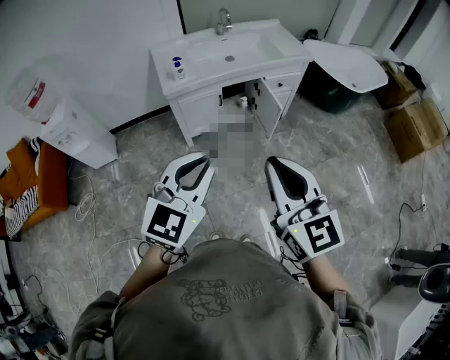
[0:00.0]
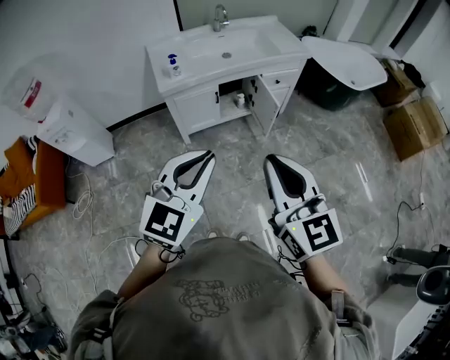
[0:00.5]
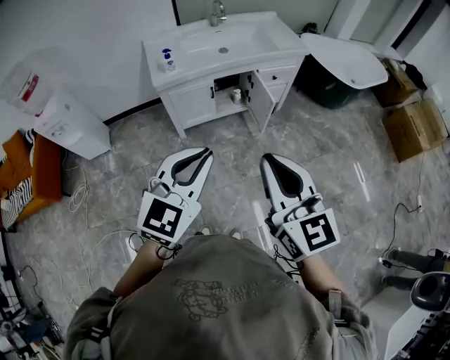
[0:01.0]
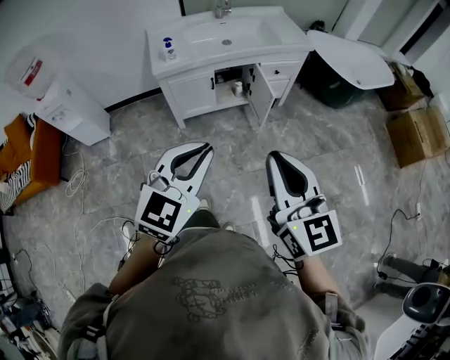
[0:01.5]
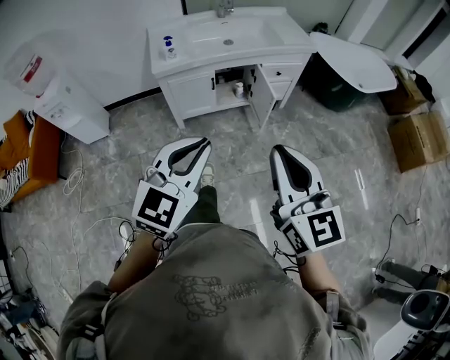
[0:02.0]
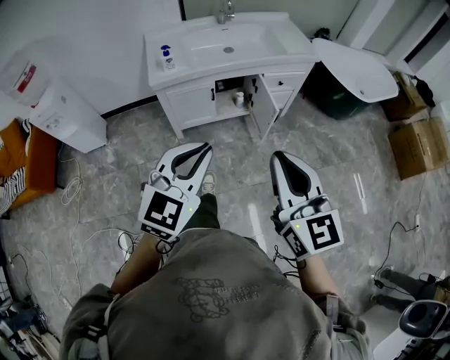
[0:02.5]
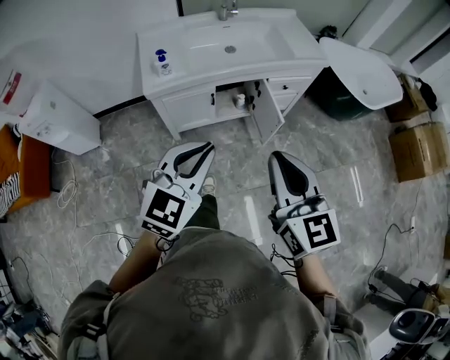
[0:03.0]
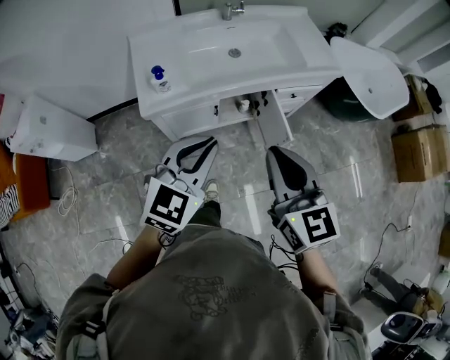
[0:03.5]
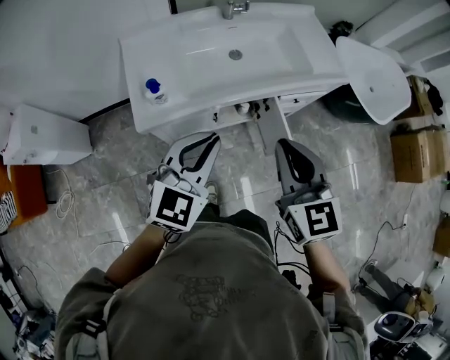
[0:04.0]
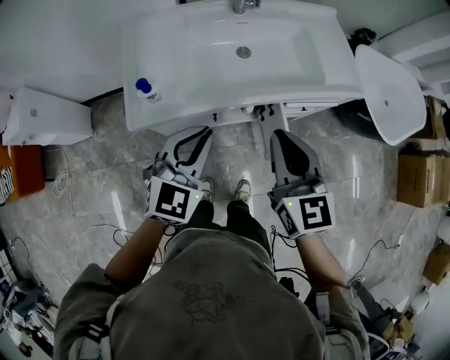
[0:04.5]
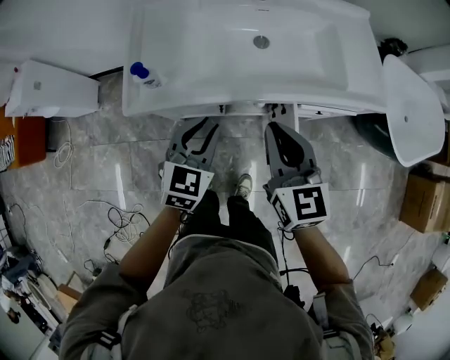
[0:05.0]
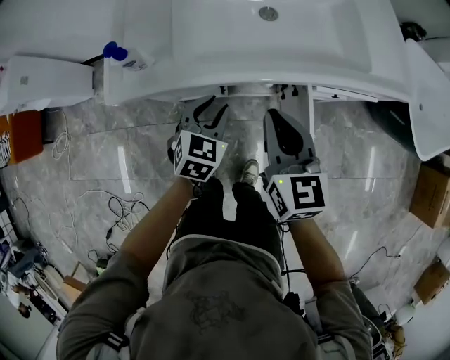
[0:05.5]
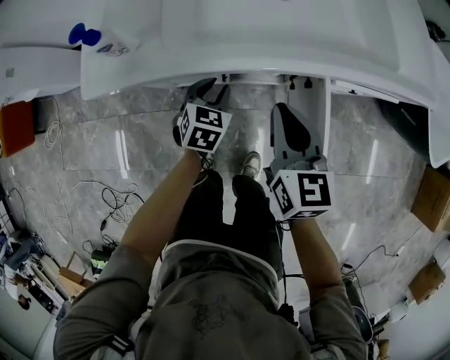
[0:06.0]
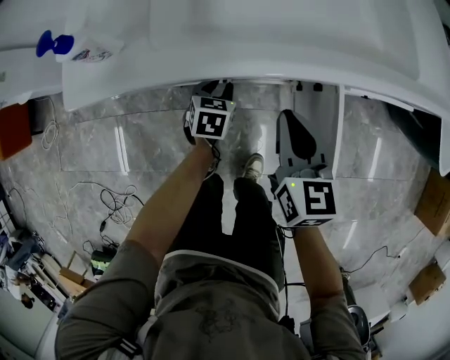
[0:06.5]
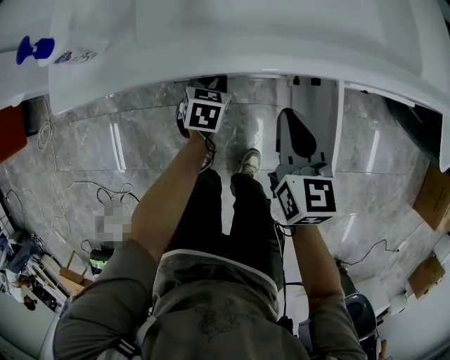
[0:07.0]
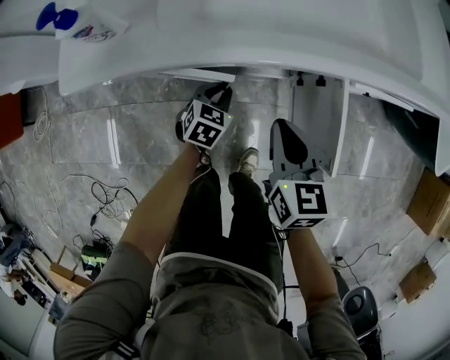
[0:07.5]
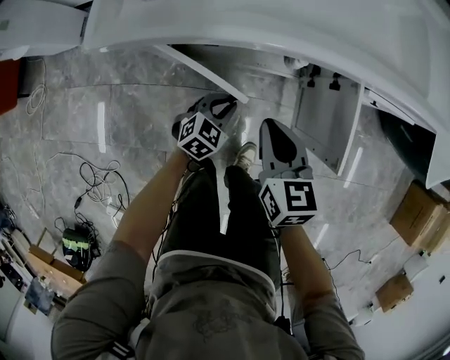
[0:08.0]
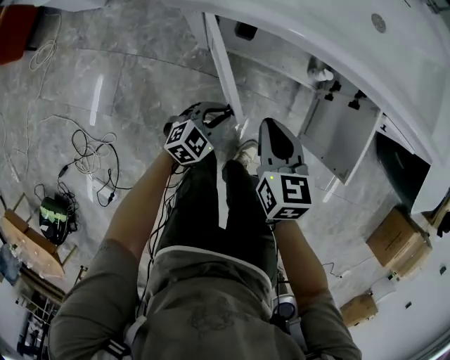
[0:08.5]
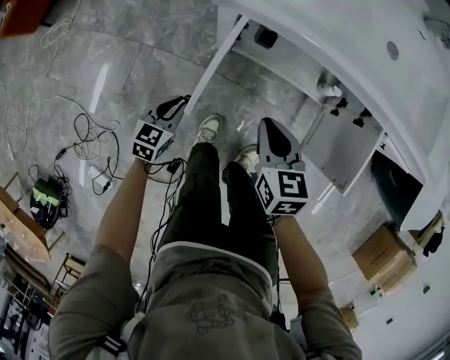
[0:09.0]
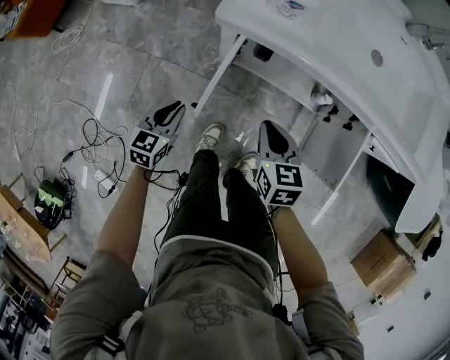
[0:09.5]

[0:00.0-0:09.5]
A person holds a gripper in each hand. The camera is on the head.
0:00.0 to 0:02.0: Both grippers move to the right, roughly 10 cm.
0:02.0 to 0:04.0: Both grippers are carried forward, approximately 50 cm.
0:04.0 to 0:05.5: Both grippers move downward and forward, some 30 cm. The left gripper changes its angle by approximately 40 degrees, and opens.
0:05.5 to 0:07.5: The grippers both shift downward by approximately 20 cm.
0:07.5 to 0:09.5: The left gripper heads to the left and backward, covering approximately 35 cm, and turns by roughly 30 degrees, while the right gripper goes about 20 cm to the left, and changes its angle by approximately 20 degrees.

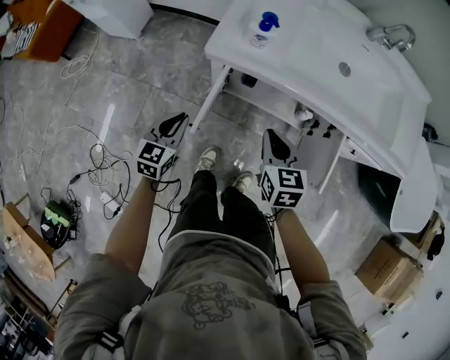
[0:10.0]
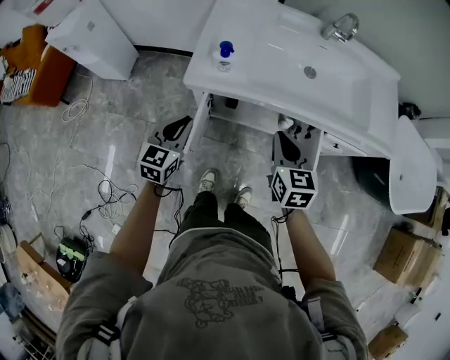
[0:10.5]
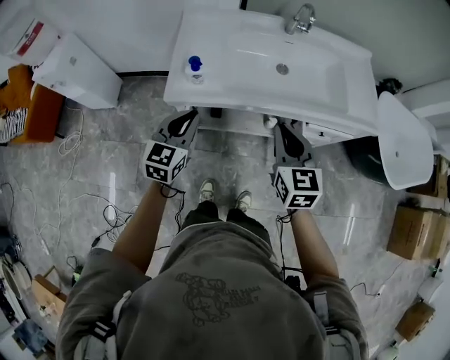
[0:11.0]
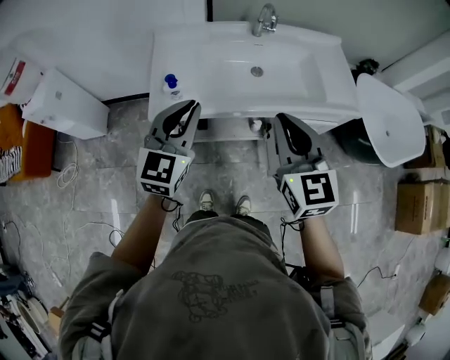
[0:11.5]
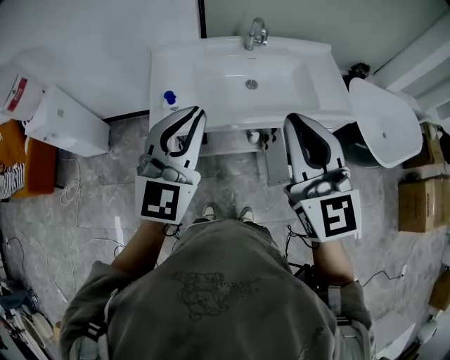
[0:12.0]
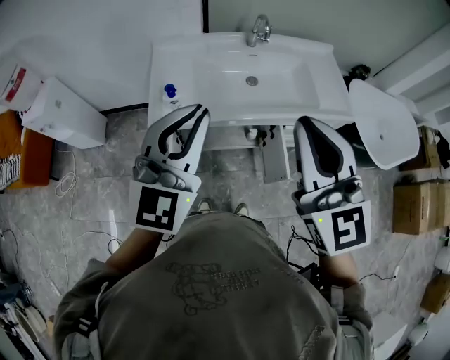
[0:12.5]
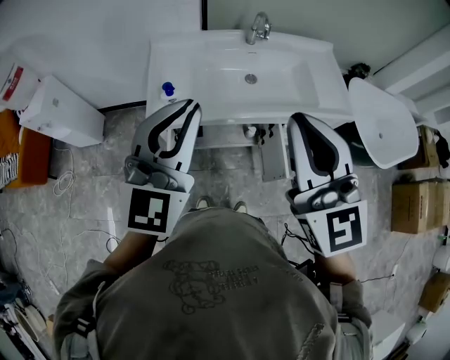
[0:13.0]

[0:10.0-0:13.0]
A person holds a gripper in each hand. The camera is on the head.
0:10.0 to 0:11.5: Both grippers move upward and to the right, some 40 cm. The left gripper swivels about 30 degrees; the right gripper swivels some 30 degrees.
0:11.5 to 0:13.0: The left gripper heads upward and backward, covering approximately 15 cm, while the right gripper shifts about 15 cm upward.

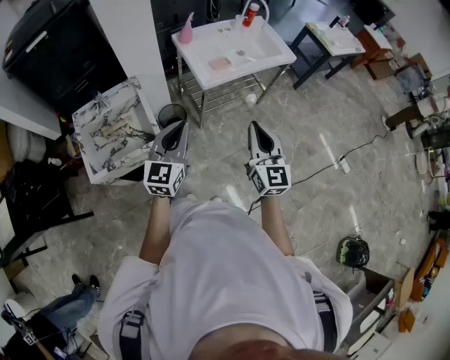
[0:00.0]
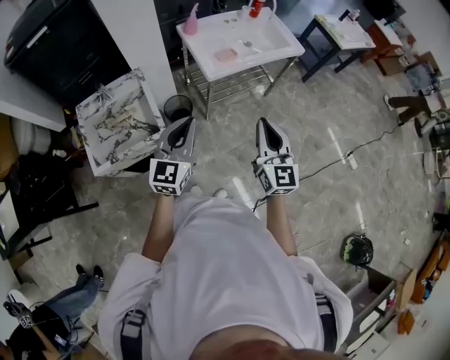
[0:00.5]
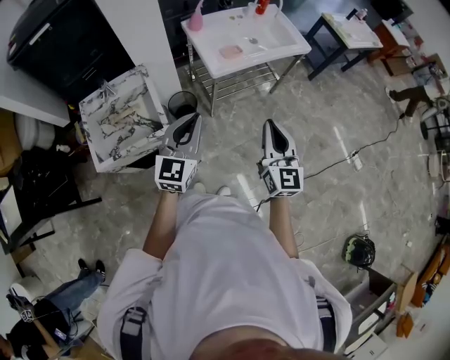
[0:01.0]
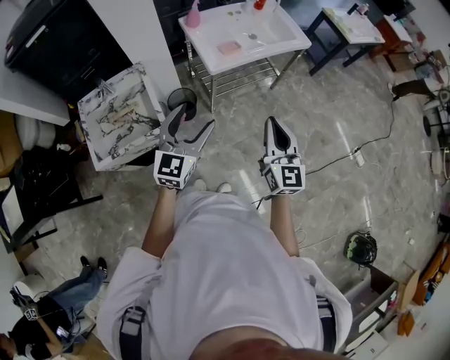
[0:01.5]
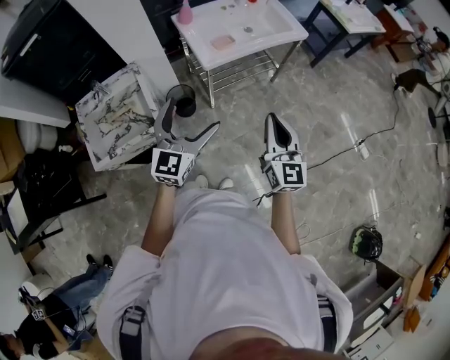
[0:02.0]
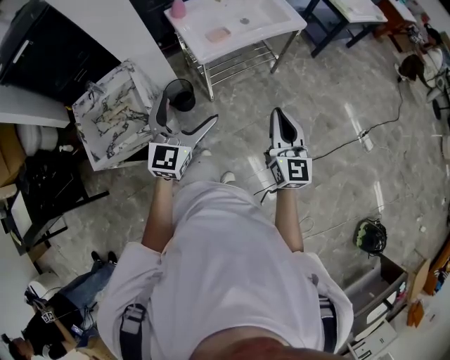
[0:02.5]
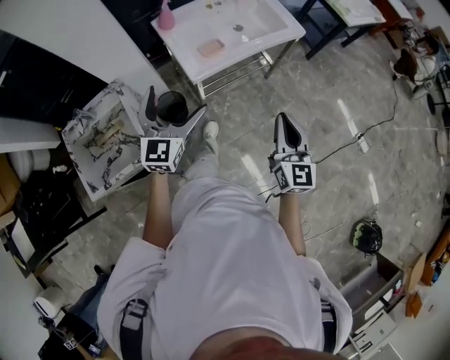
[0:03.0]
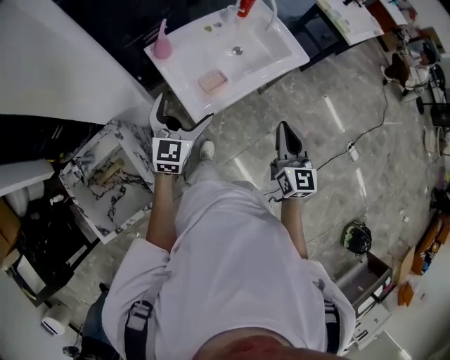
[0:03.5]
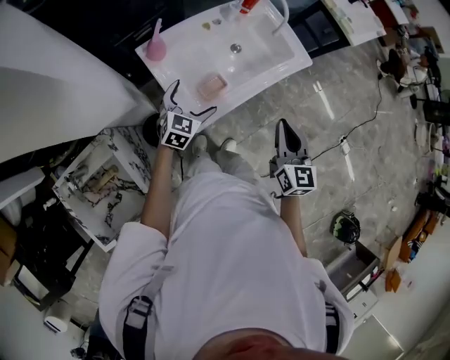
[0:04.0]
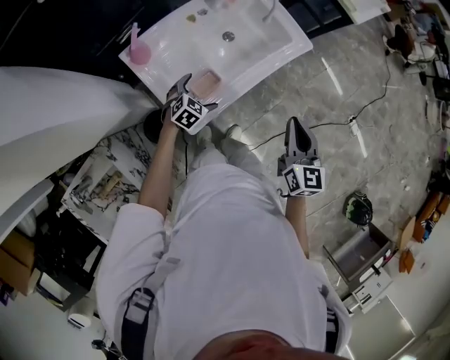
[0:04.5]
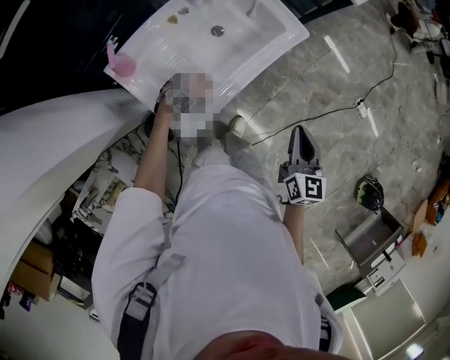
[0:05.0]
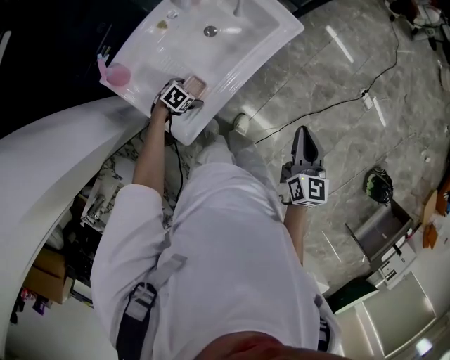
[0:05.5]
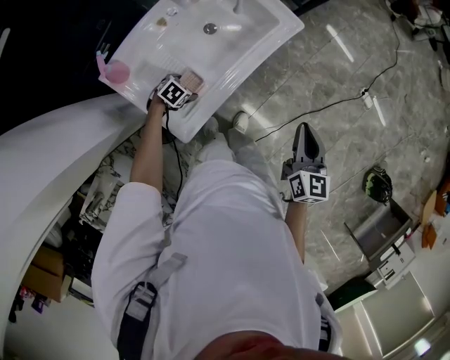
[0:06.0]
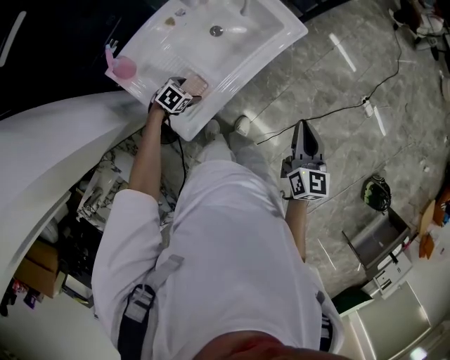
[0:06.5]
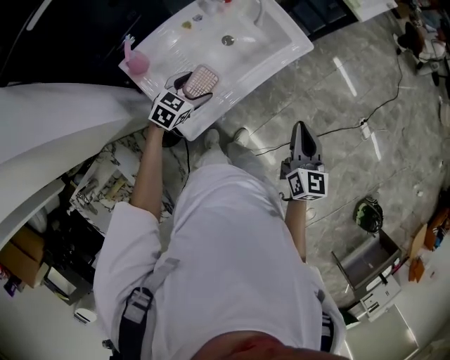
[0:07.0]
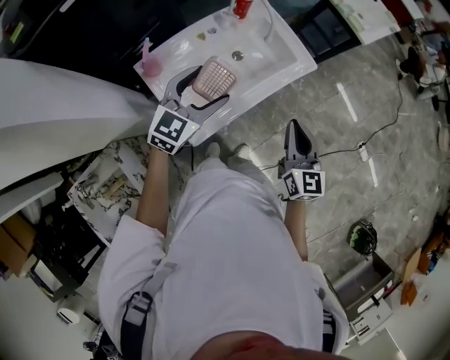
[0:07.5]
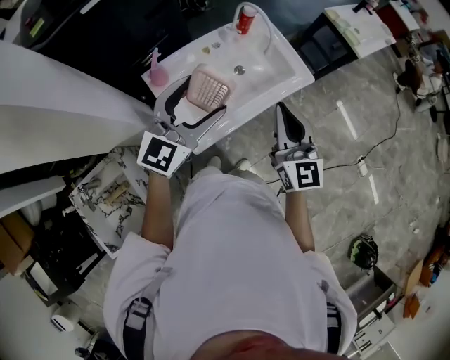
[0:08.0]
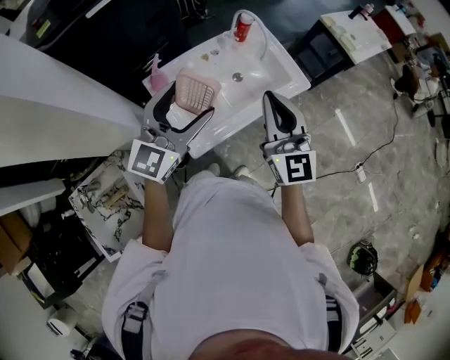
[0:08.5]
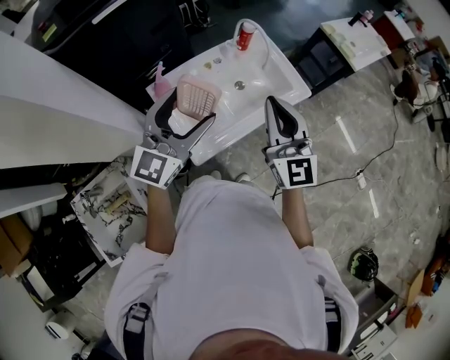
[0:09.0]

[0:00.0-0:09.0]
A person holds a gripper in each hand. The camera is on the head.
0:00.0 to 0:02.0: Both grippers move to the right, approximately 10 cm. The left gripper opens.
0:02.0 to 0:04.5: The two grippers travel together, forward, approximately 50 cm. The left gripper travels downward by some 35 cm, and tips its fingers downward by about 40 degrees. The right gripper rotates roughly 30 degrees.
0:04.5 to 0:07.0: The left gripper travels upward by approximately 10 cm.
0:07.0 to 0:09.0: The left gripper is displaced upward by roughly 30 cm, and angles its fingers upward, by some 40 degrees. The right gripper goes roughly 25 cm upward and to the left, and turns by about 40 degrees.

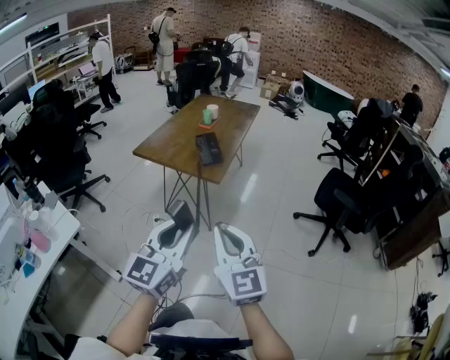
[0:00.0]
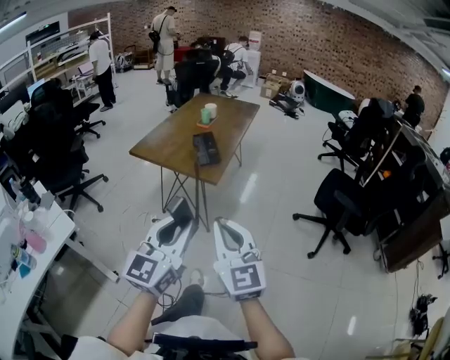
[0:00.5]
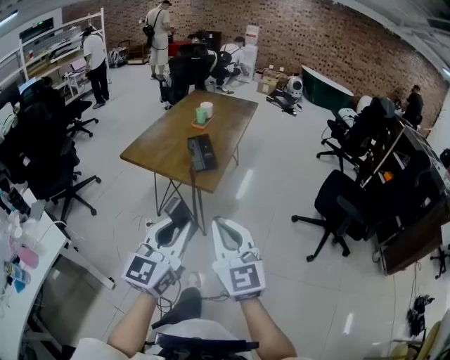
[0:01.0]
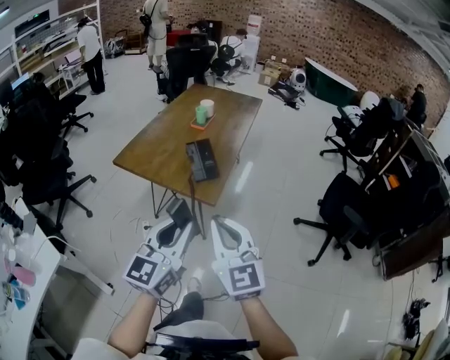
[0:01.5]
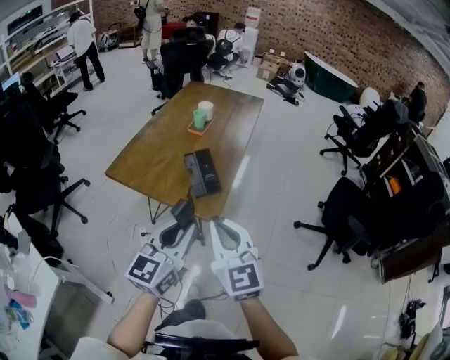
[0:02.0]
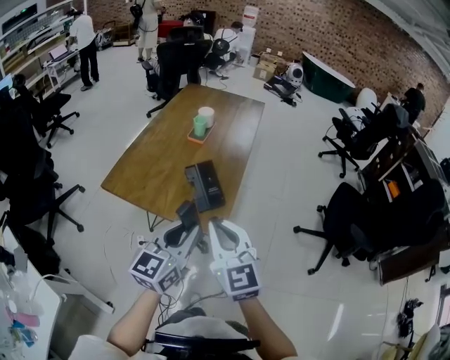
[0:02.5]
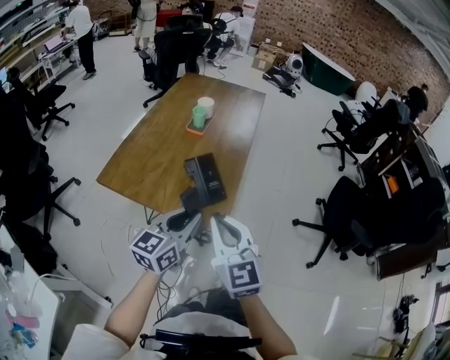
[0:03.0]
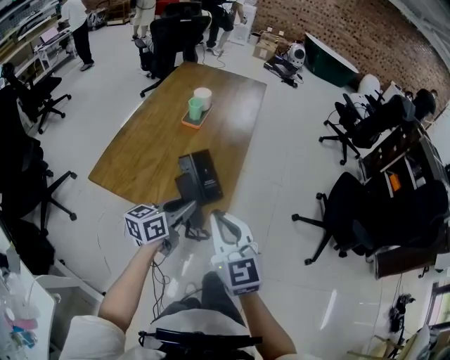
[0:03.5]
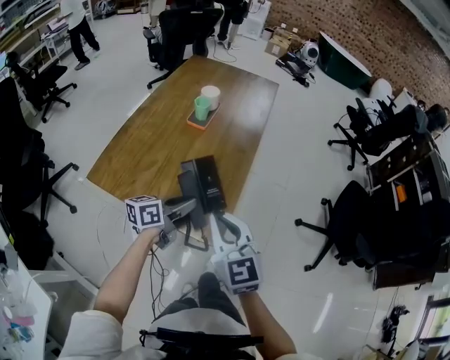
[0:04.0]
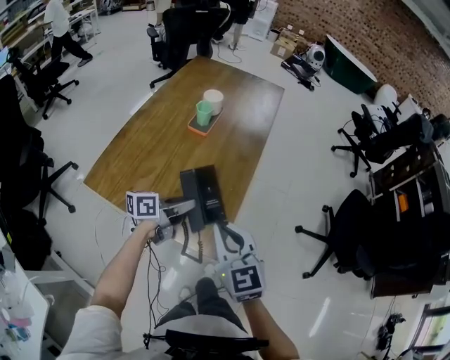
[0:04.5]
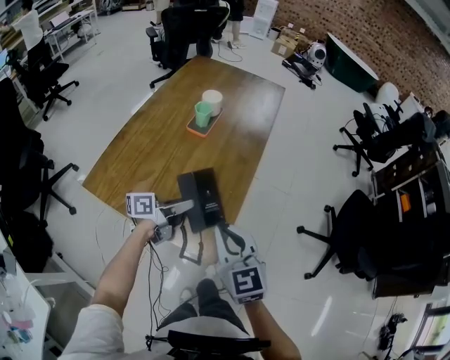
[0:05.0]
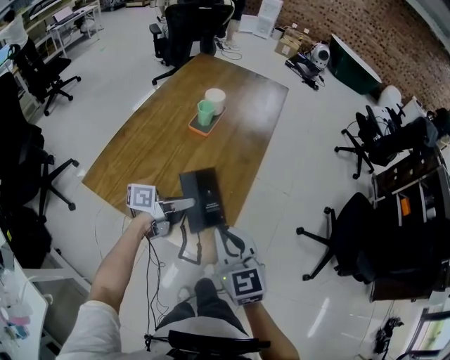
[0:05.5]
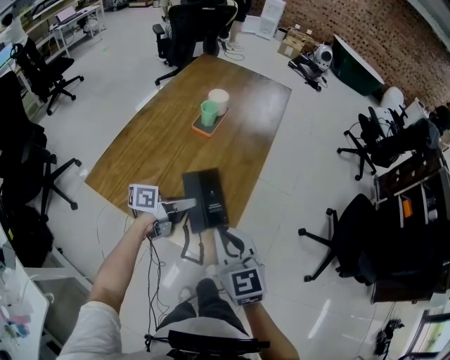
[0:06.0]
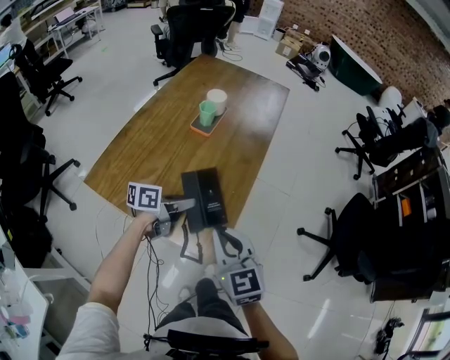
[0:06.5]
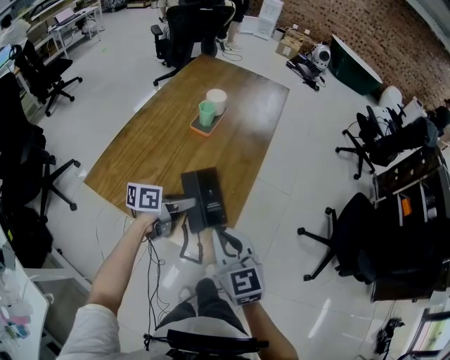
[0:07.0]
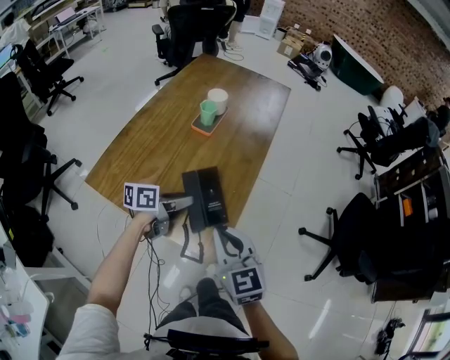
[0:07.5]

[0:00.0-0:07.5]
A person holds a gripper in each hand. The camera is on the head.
0:00.0 to 0:02.0: The two grippers go roughly 30 cm forward.
0:02.0 to 0:04.0: The right gripper shifts about 20 cm forward and downward; the left gripper moves forward and downward, some 30 cm, and turns by roughly 40 degrees.
0:04.0 to 0:05.5: The left gripper heads forward, covering approximately 5 cm; the right gripper ends up about 5 cm from where it was.
0:05.5 to 0:07.5: There are only small adjustments of the grippers.
